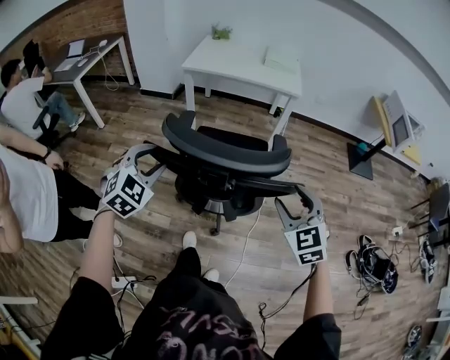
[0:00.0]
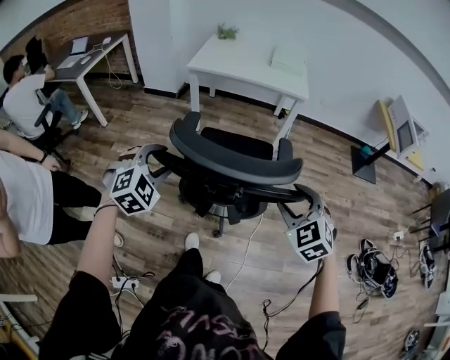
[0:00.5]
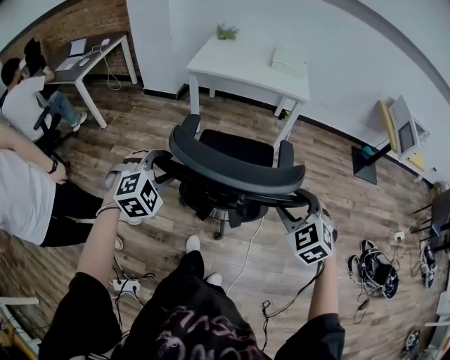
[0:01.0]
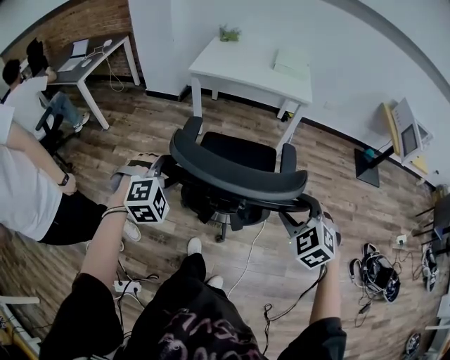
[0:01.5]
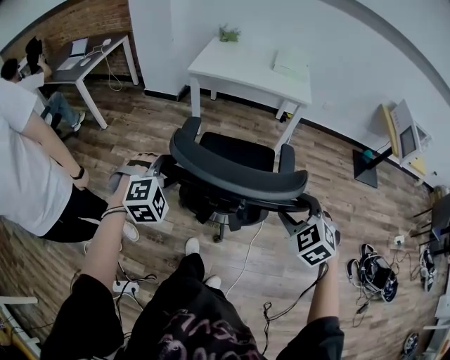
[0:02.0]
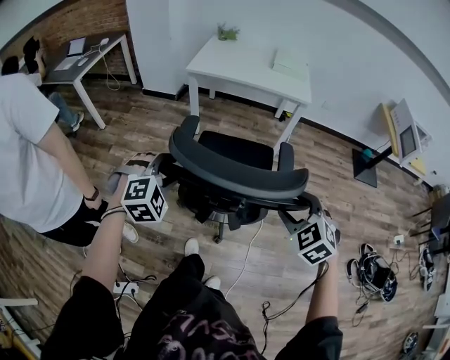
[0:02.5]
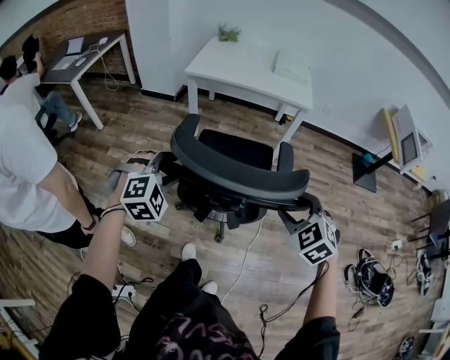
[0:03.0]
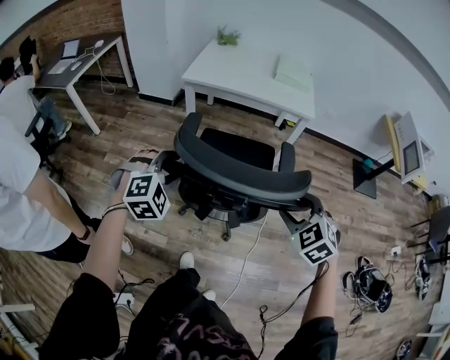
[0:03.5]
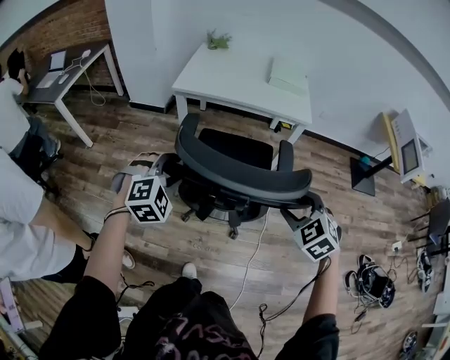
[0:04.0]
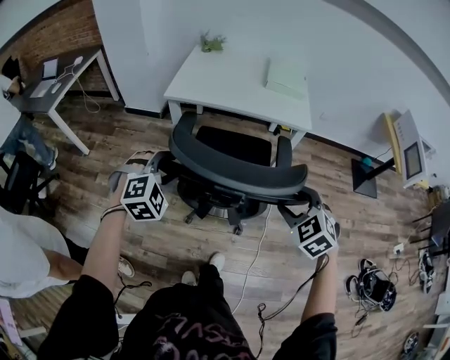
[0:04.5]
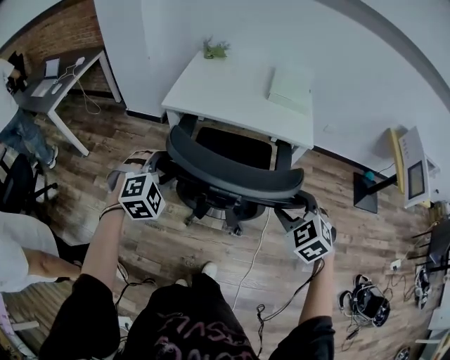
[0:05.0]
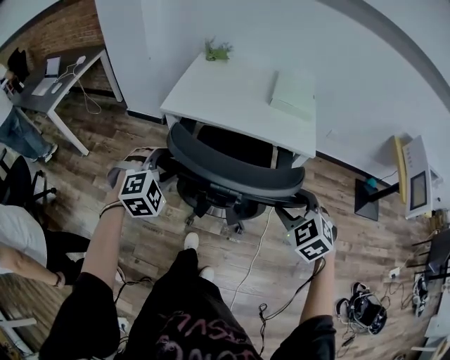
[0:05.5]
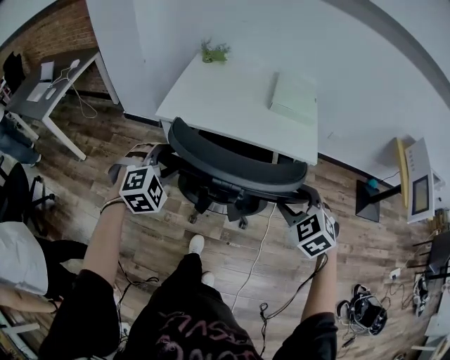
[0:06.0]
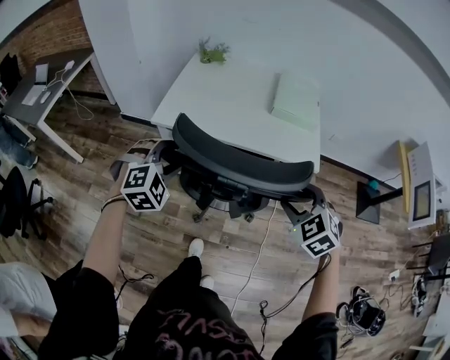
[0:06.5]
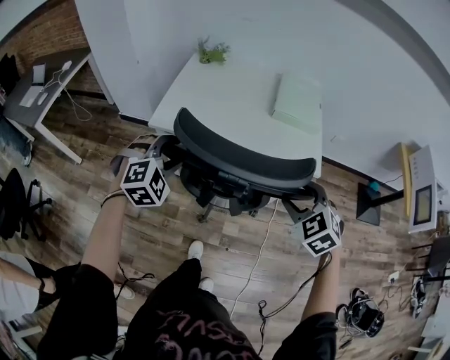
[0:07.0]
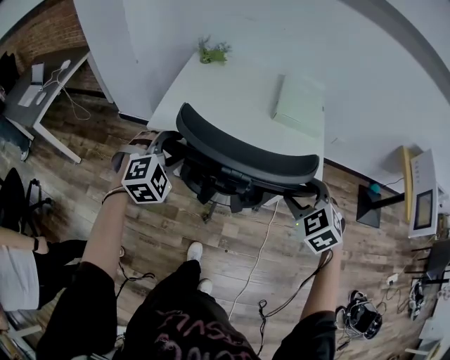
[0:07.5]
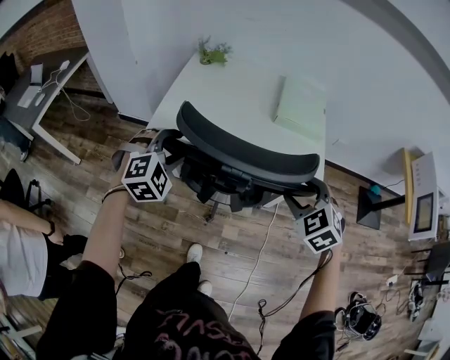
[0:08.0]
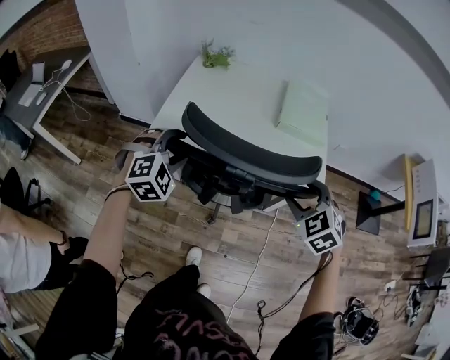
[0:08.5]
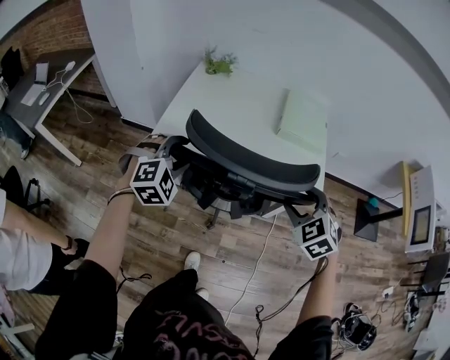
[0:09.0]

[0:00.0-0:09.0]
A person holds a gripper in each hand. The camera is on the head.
0:00.0 to 0:02.0: The right gripper changes place by about 5 cm, and turns by approximately 20 degrees; the left gripper ends up some 5 cm from where it was, and changes its angle by about 30 degrees.
0:02.0 to 0:04.5: Both grippers move forward, some 30 cm.
0:04.5 to 0:07.0: The two grippers go roughly 30 cm forward.
0:07.0 to 0:09.0: Both grippers move forward, approximately 5 cm.

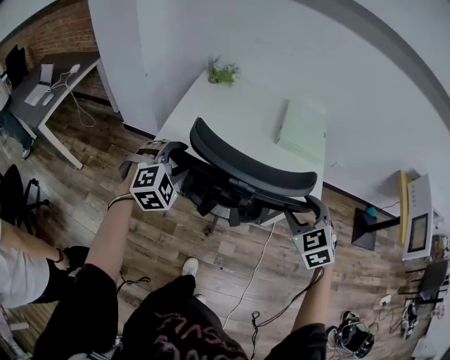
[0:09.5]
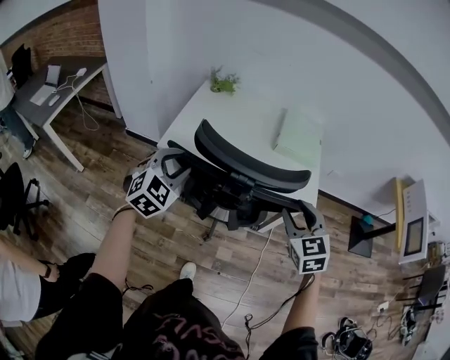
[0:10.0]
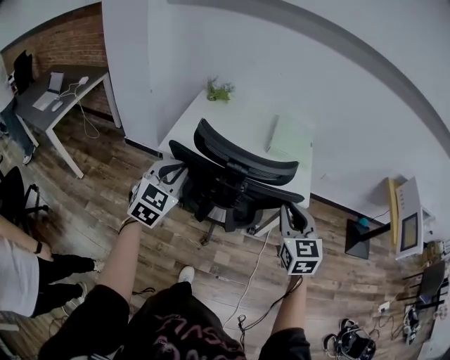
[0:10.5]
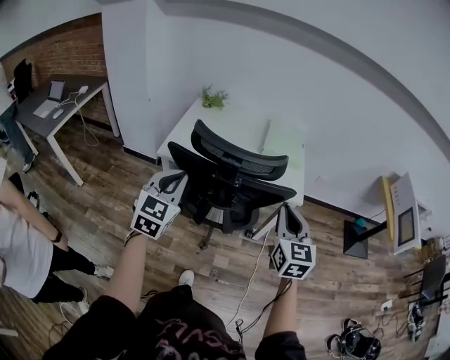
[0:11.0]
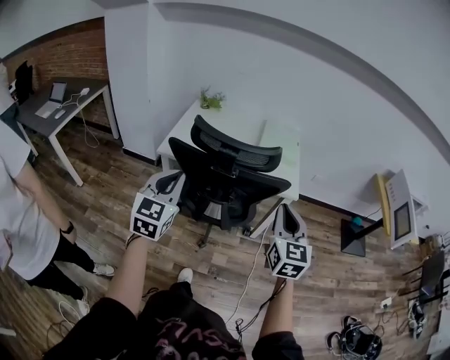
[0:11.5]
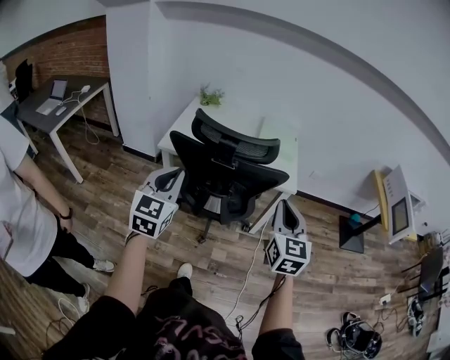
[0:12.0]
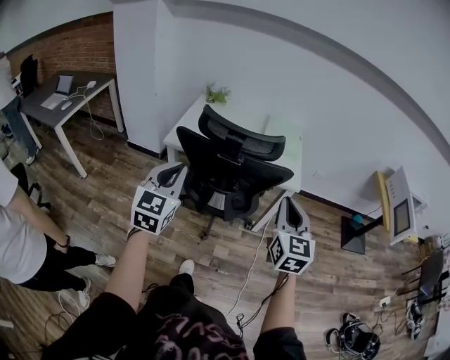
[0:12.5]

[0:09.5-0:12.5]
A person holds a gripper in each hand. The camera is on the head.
0:09.5 to 0:11.0: The two grippers go some 15 cm backward and upward. The right gripper changes its angle by roughly 40 degrees, and closes; the left gripper rotates around the line of its fingers by about 40 degrees, counterclockwise from behind, and closes its fingers.
0:11.0 to 0:12.5: Both grippers travel together backward, approximately 10 cm.

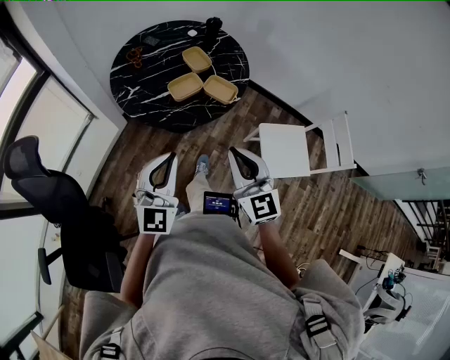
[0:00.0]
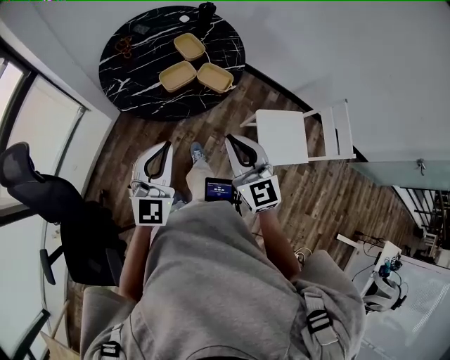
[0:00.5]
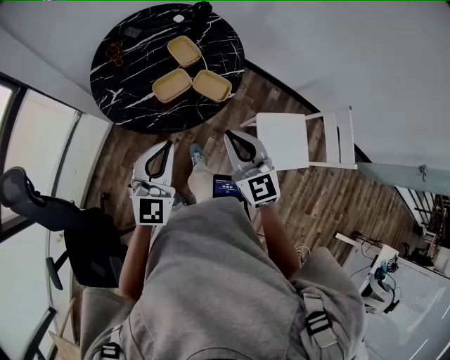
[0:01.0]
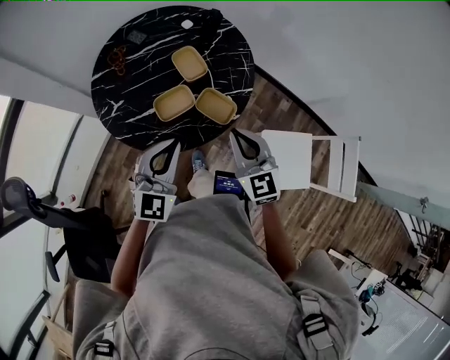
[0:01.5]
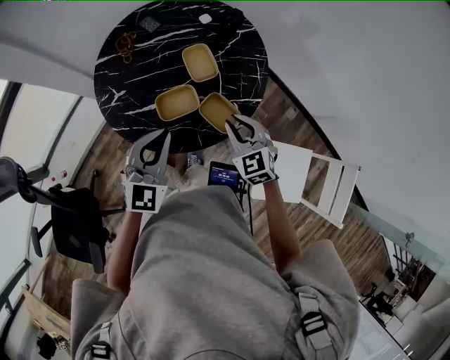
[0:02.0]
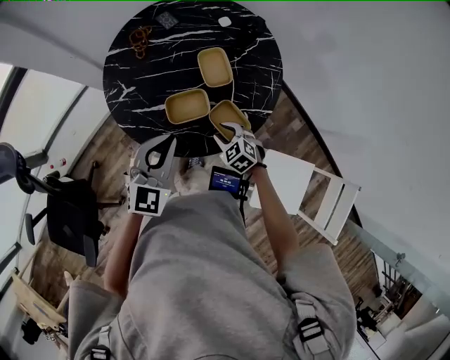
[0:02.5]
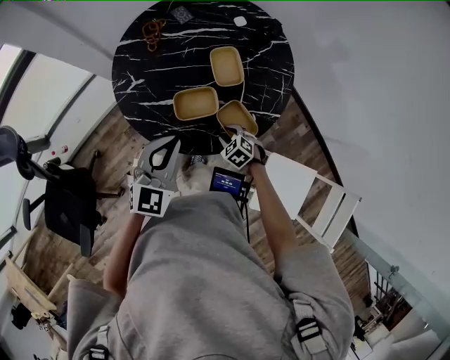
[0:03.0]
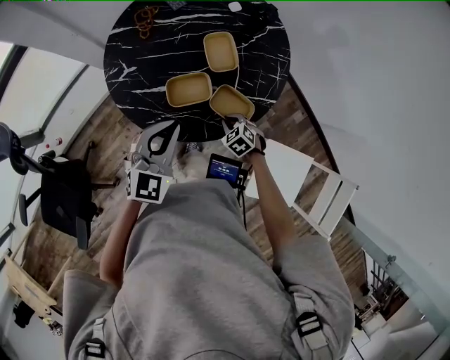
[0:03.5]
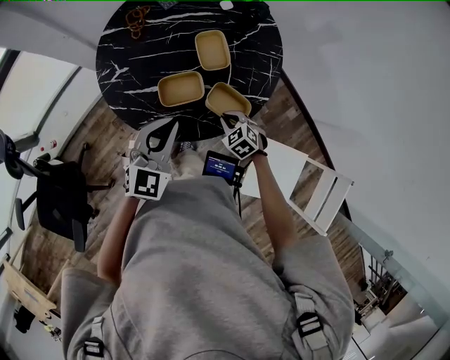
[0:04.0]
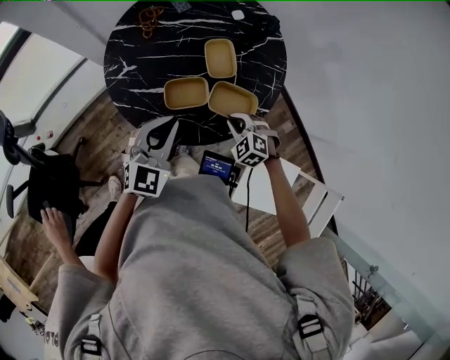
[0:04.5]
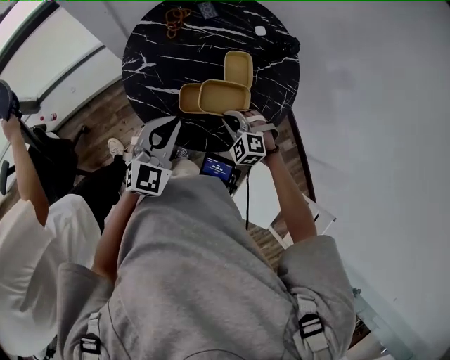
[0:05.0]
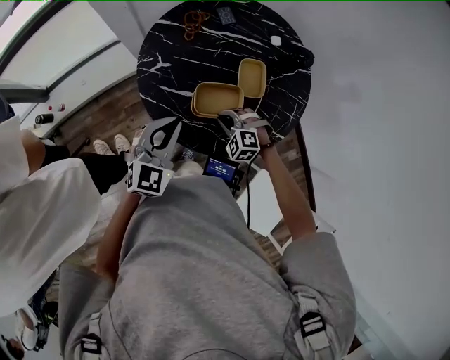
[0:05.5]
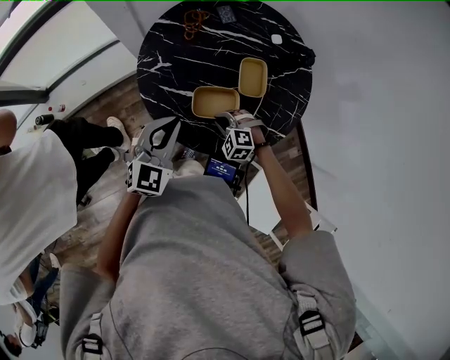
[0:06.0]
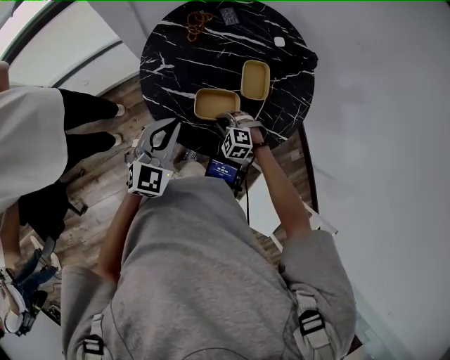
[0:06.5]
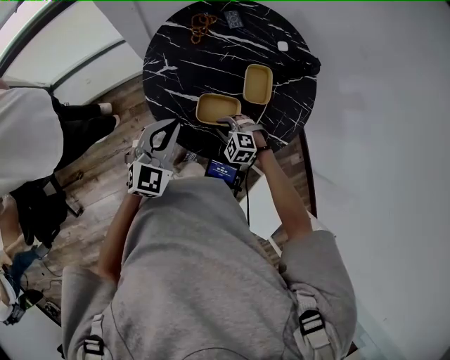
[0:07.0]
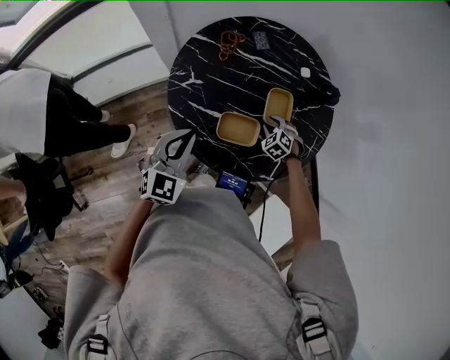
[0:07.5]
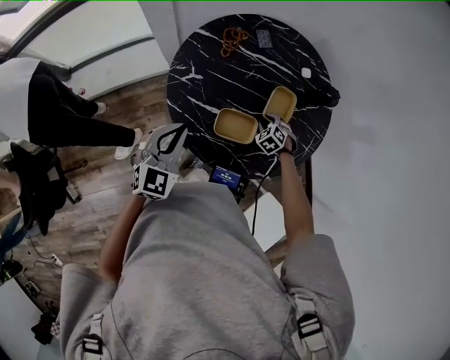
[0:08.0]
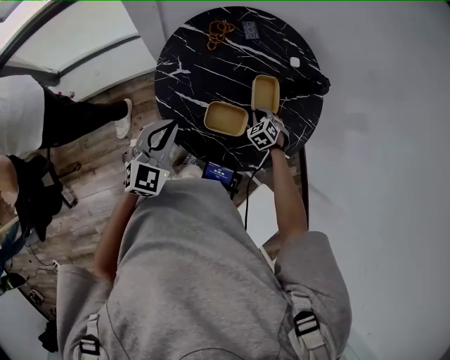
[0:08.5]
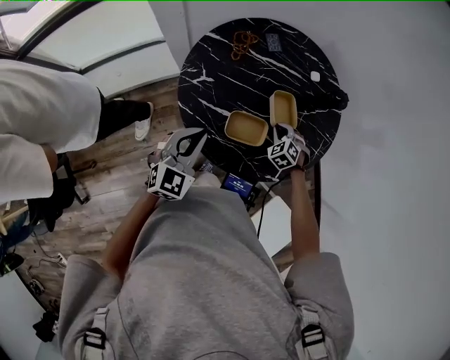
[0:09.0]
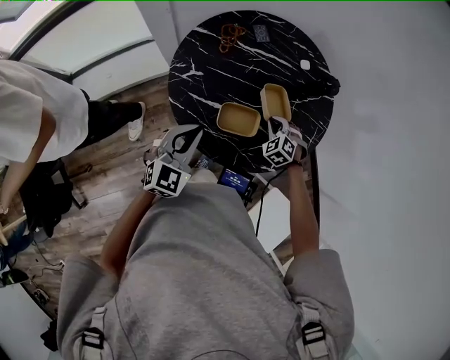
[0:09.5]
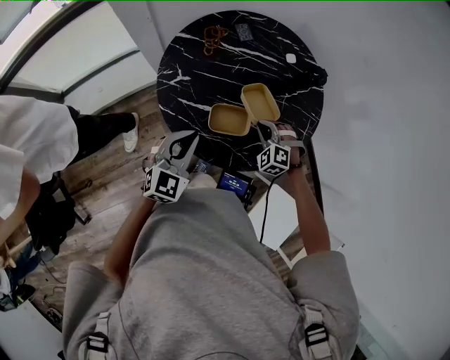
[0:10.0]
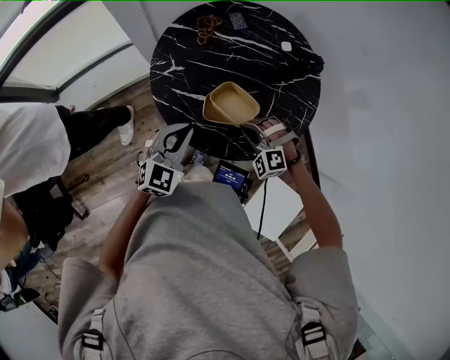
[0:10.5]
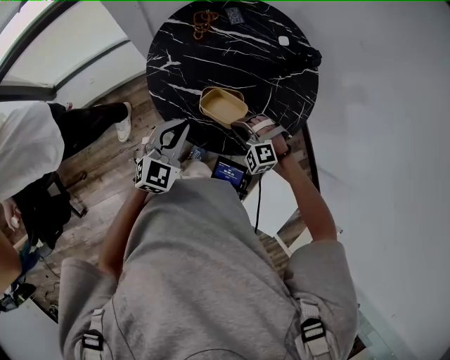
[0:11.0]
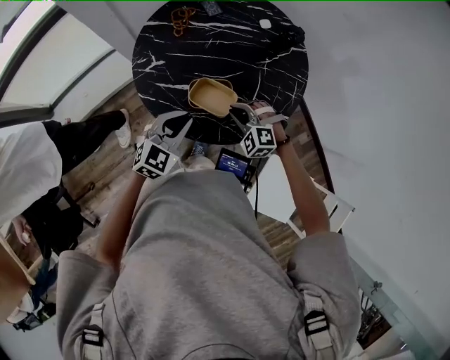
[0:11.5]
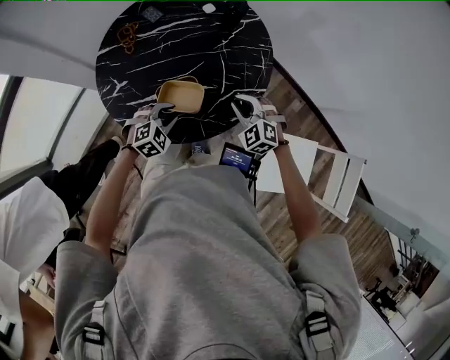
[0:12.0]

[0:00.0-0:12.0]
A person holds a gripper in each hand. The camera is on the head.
0:00.0 to 0:02.0: The right gripper goes roughly 40 cm forward and downward, and swivels about 30 degrees, while the left gripper goes approximately 30 cm forward.
0:02.0 to 0:04.0: The right gripper goes roughly 20 cm downward, and changes its angle by about 30 degrees. The left gripper moves about 5 cm.
0:04.0 to 0:06.0: The left gripper travels to the left by some 10 cm. Meanwhile the right gripper shifts roughly 15 cm to the left and forward, and twists roughly 50 degrees counterclockwise, seen from behind.
0:06.0 to 0:08.0: The left gripper shifts some 5 cm to the left, while the right gripper travels forward, to the right and downward by approximately 15 cm, turns by some 30 degrees, and opens.
0:08.0 to 0:10.0: The right gripper travels upward and backward by approximately 15 cm, swivels some 20 degrees, and closes, while the left gripper moves to the right, approximately 5 cm.
0:10.0 to 0:12.0: The right gripper ends up approximately 10 cm from where it was, and rotates about 30 degrees; the left gripper shifts about 15 cm downward, points its fingers roughly 30 degrees further downward, and opens.

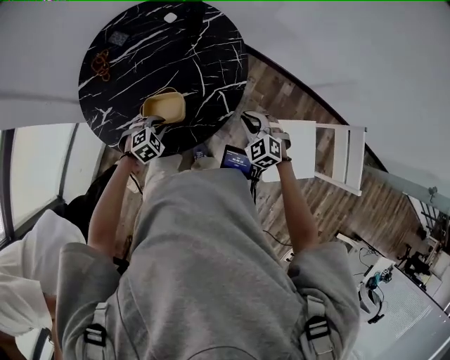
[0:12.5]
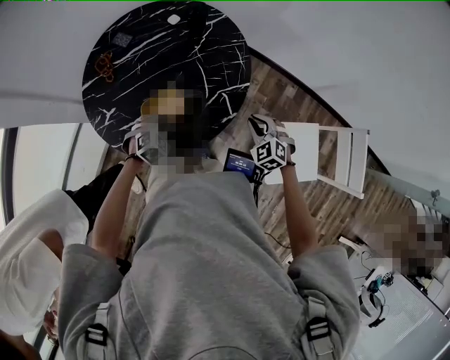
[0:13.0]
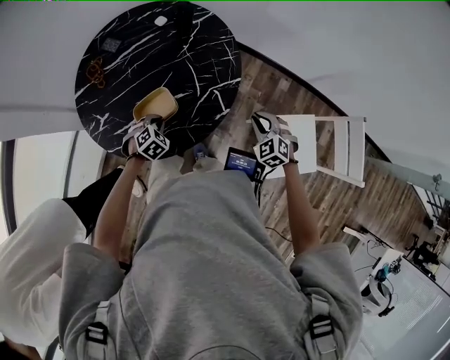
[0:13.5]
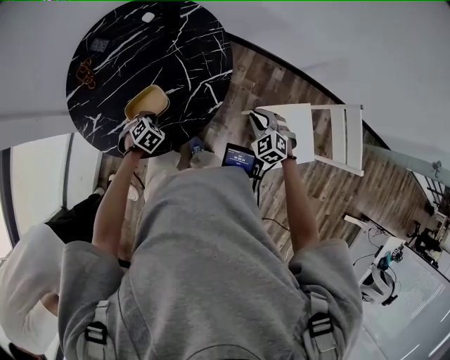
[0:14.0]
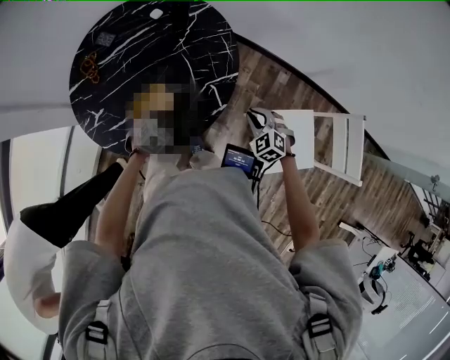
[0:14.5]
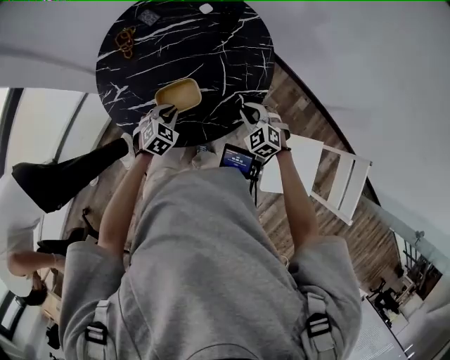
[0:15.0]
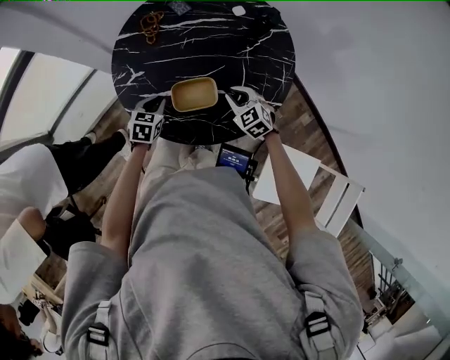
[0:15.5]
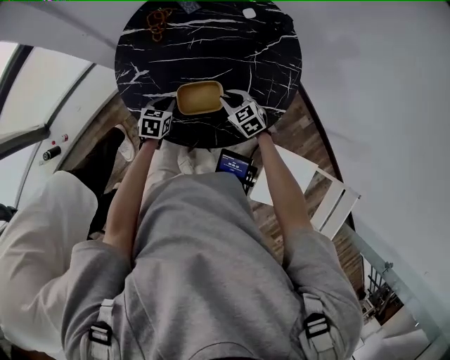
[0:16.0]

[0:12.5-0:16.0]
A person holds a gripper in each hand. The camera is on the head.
0:12.5 to 0:14.5: The right gripper goes about 5 cm to the right.
0:14.5 to 0:16.0: The right gripper shifts by approximately 30 cm, and rotates approximately 30 degrees; the left gripper changes place by some 15 cm, and twists about 60 degrees counterclockwise, seen from behind.
